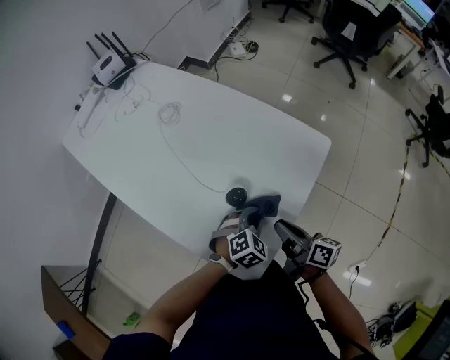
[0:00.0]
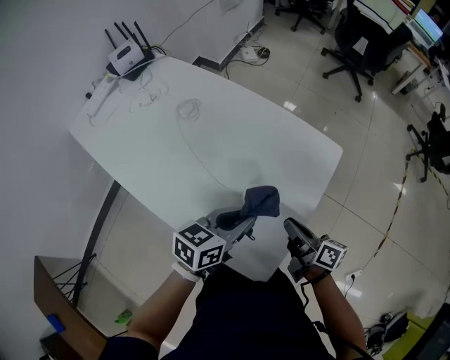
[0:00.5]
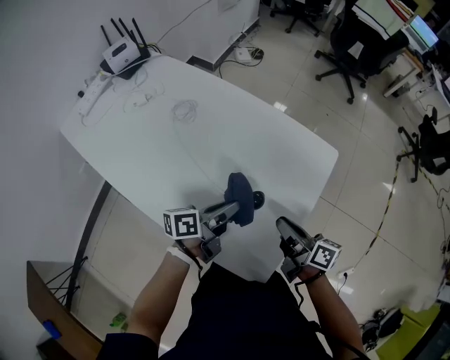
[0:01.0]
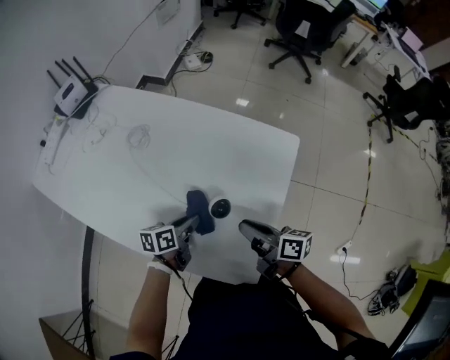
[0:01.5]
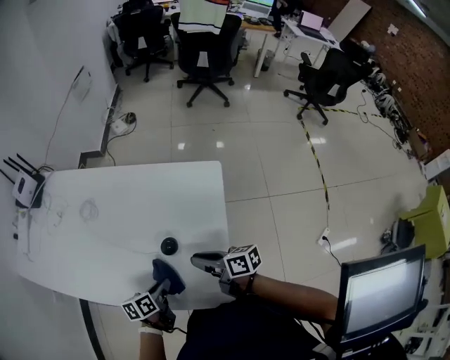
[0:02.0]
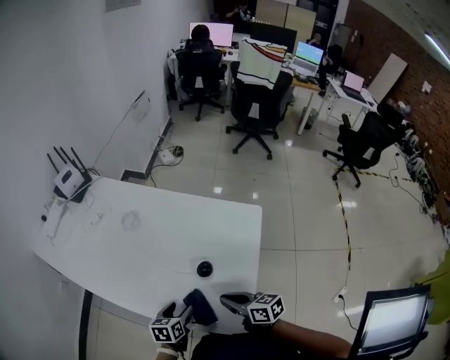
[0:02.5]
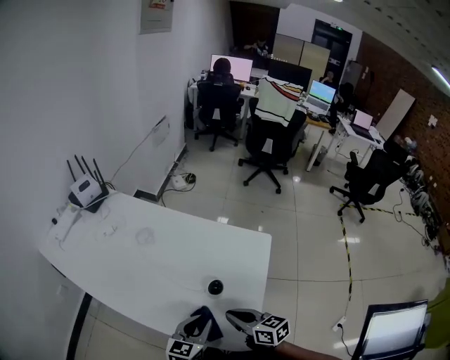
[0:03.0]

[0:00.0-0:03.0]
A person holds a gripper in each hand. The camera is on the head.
0:00.0 to 0:01.5: The right gripper shifts roughly 10 cm to the left. The left gripper is displaced to the left by some 20 cm, and twists roughly 70 degrees counterclockwise, seen from behind.
0:01.5 to 0:03.0: The left gripper heads upward and backward, covering about 20 cm, swivels approximately 40 degrees, and opens and closes again. Meanwhile the right gripper goes approximately 10 cm backward and upward, and rotates some 30 degrees.

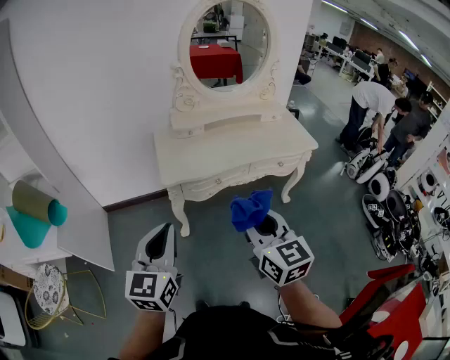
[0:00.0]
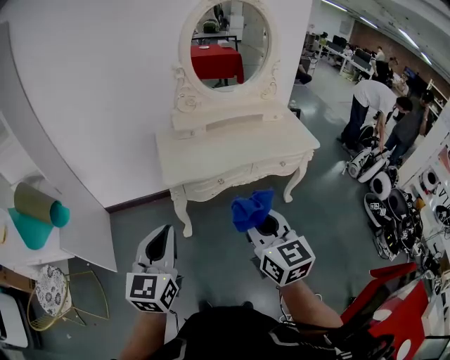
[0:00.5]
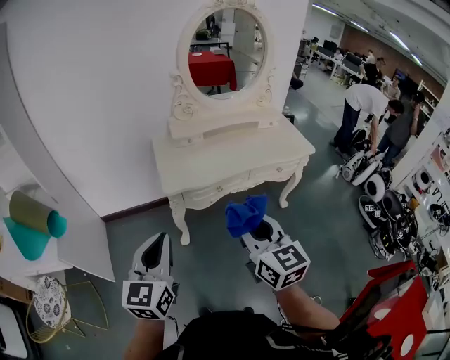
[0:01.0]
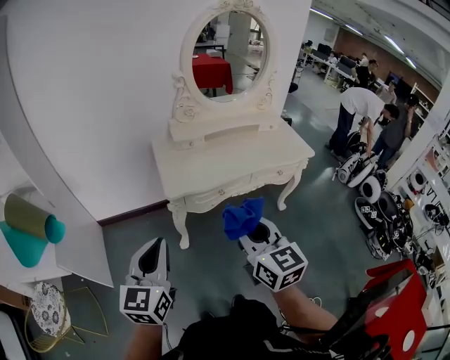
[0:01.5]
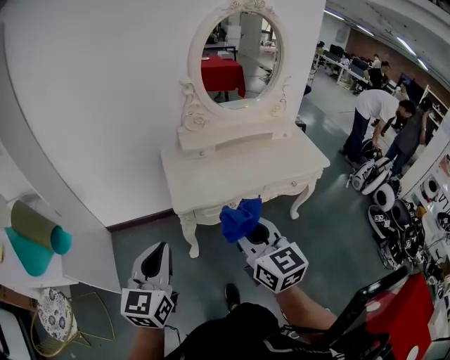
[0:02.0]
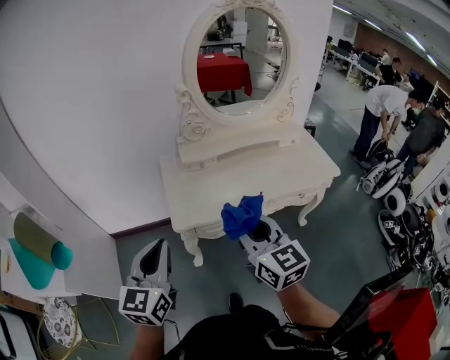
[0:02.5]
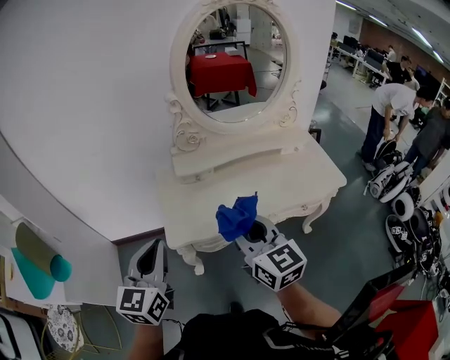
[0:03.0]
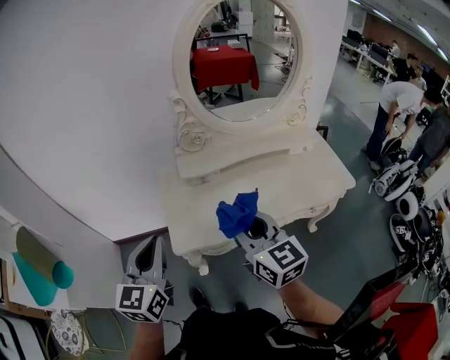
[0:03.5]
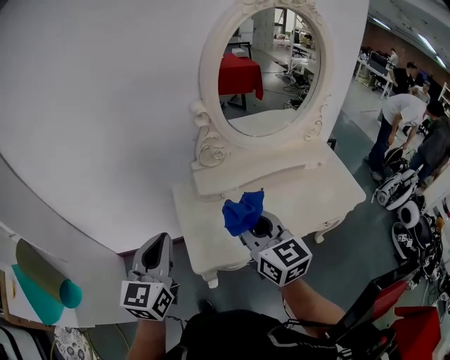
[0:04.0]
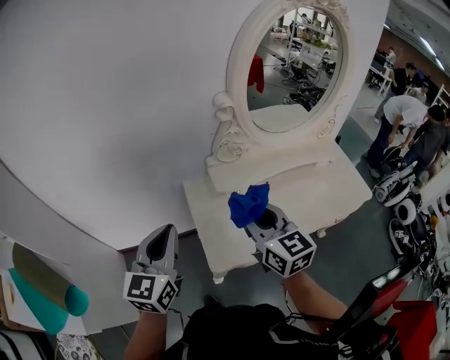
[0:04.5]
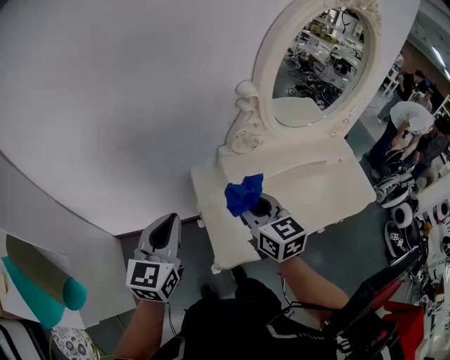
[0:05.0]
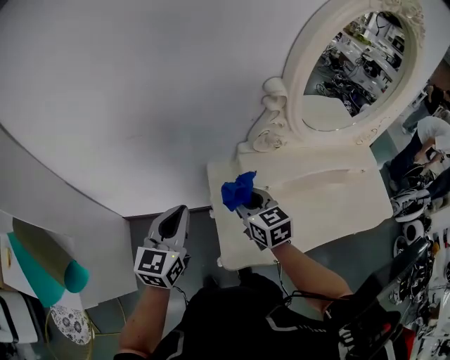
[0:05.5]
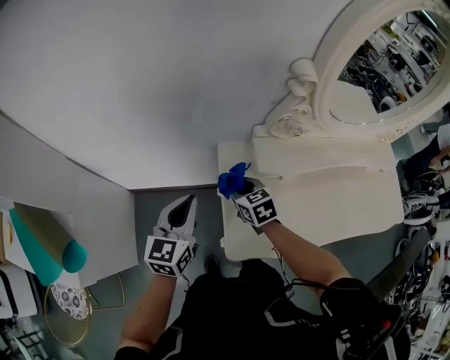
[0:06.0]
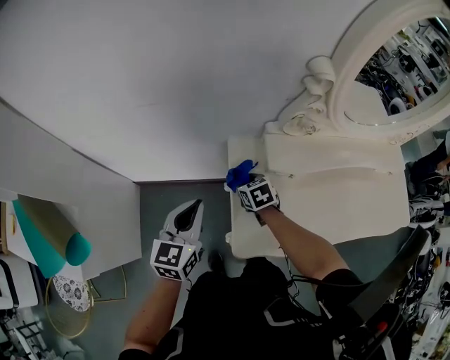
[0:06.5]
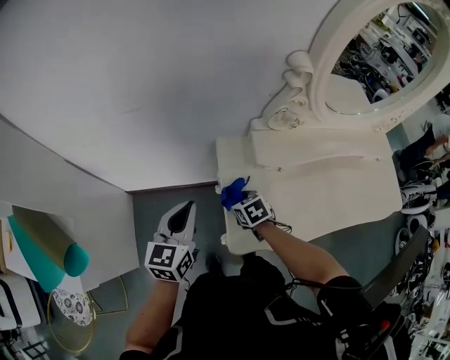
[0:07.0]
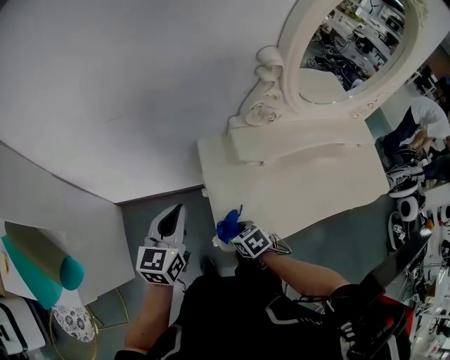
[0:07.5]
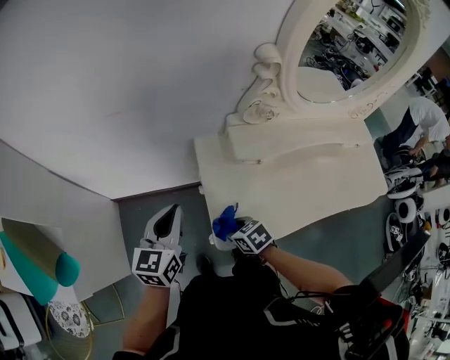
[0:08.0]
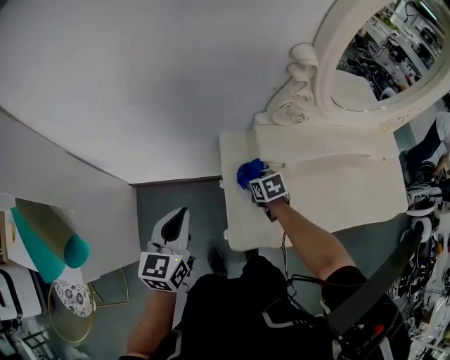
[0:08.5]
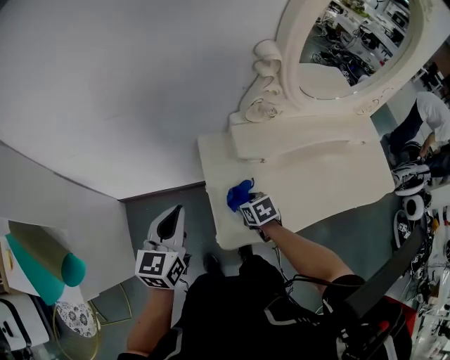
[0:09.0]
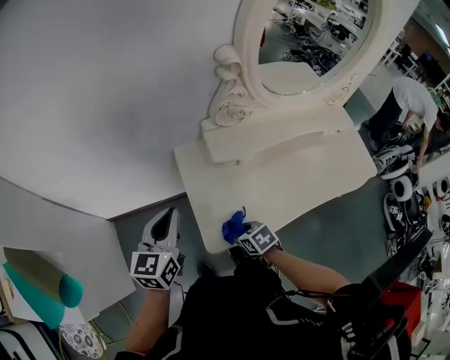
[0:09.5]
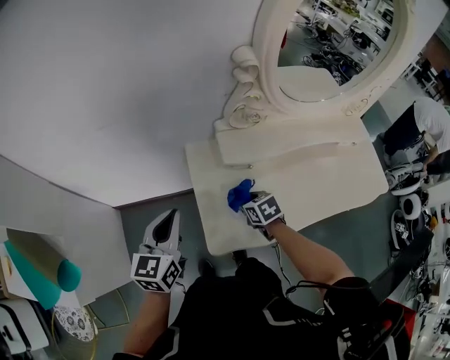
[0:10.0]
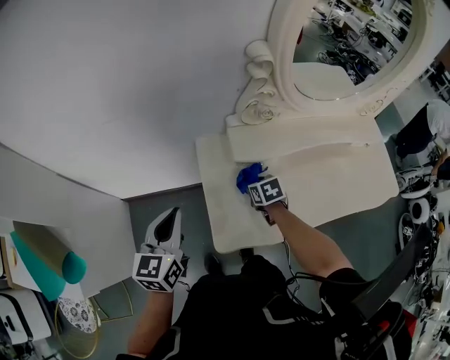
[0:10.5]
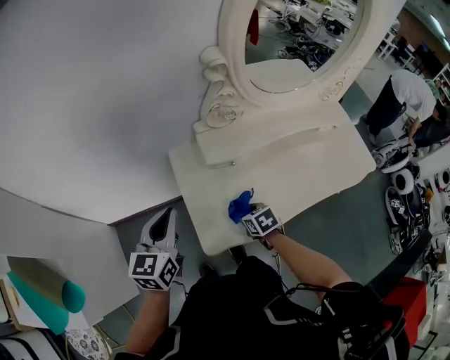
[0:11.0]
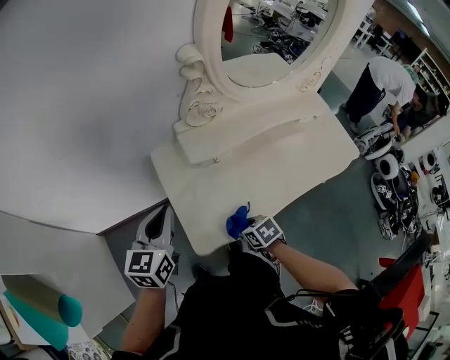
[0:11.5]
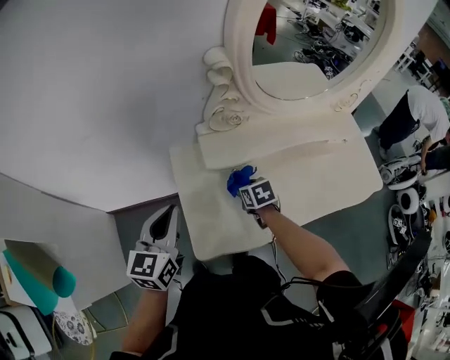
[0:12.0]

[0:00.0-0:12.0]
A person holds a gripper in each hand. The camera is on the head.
0:00.0 to 0:02.0: Both grippers move forward and to the left, roughly 10 cm.
0:02.0 to 0:04.0: Both grippers travel together forward, some 30 cm.
0:04.0 to 0:06.0: The left gripper shifts about 25 cm downward, forward and to the left, while the right gripper goes some 40 cm downward, forward and to the left, and points its fingers about 30 degrees further downward.
0:06.0 to 0:08.0: The right gripper goes some 20 cm backward, and rotates some 20 degrees. Meanwhile the left gripper shifts by some 5 cm.
0:08.0 to 0:10.0: The right gripper moves forward and backward over roughly 20 cm, changing direction 2 times.
0:10.0 to 0:12.0: The left gripper moves to the right, approximately 5 cm. Meanwhile the right gripper goes forward and backward, roughly 20 cm each way, reversing 2 times.

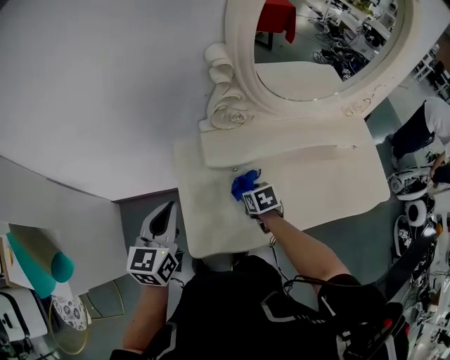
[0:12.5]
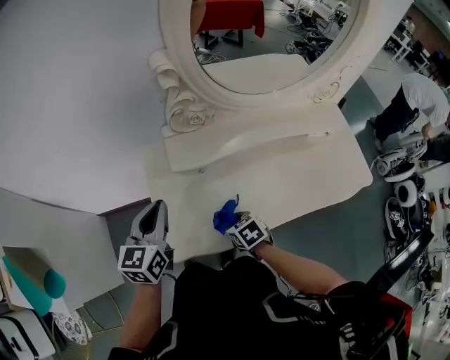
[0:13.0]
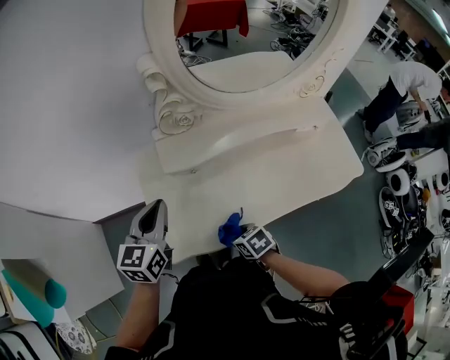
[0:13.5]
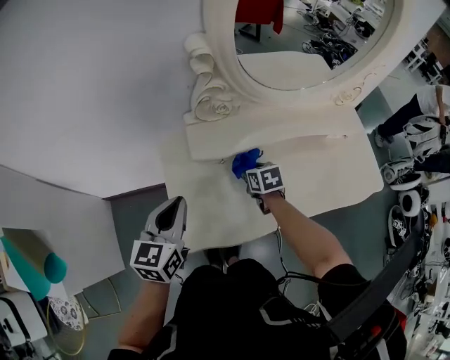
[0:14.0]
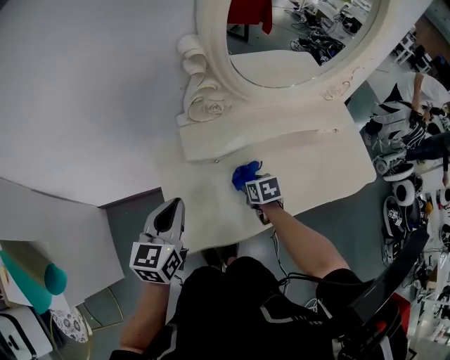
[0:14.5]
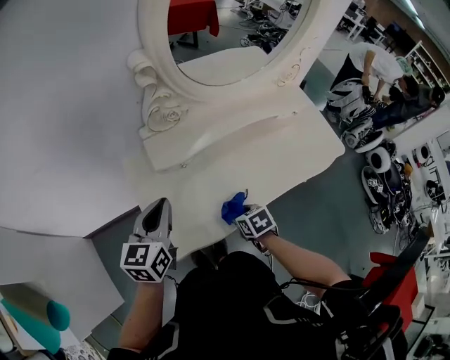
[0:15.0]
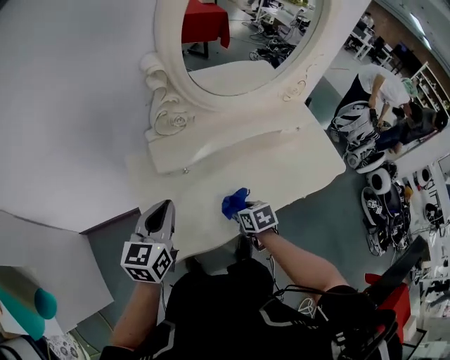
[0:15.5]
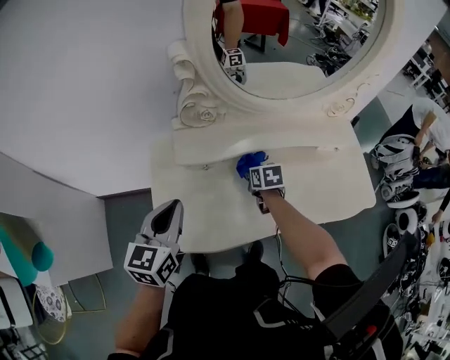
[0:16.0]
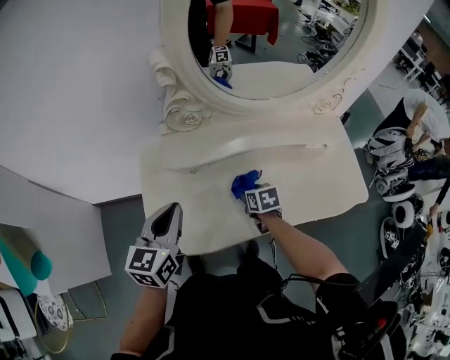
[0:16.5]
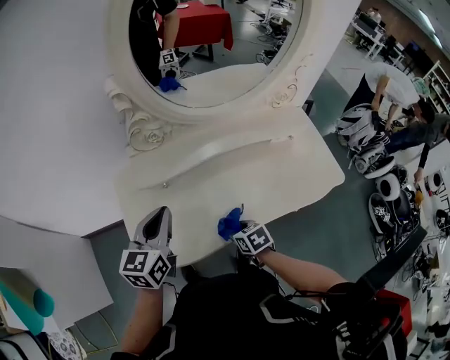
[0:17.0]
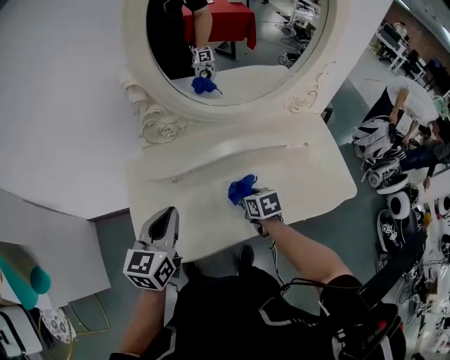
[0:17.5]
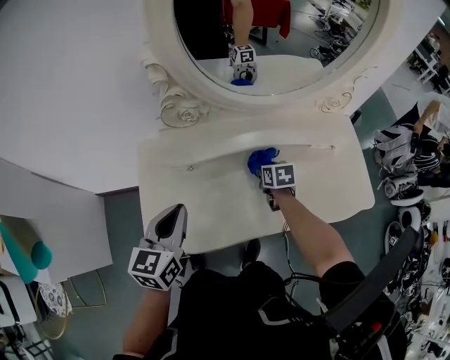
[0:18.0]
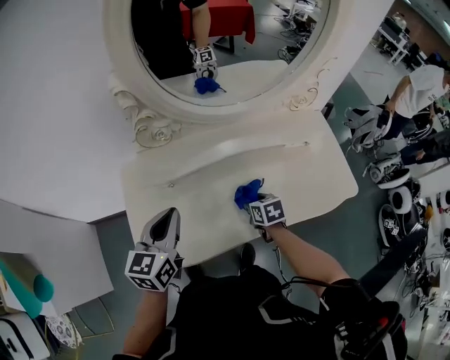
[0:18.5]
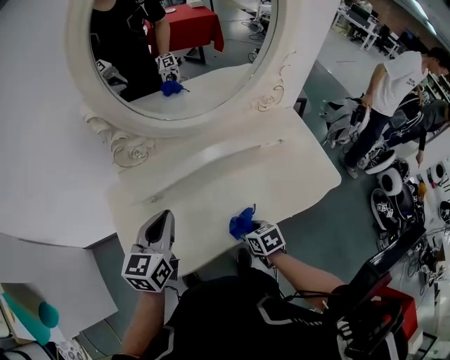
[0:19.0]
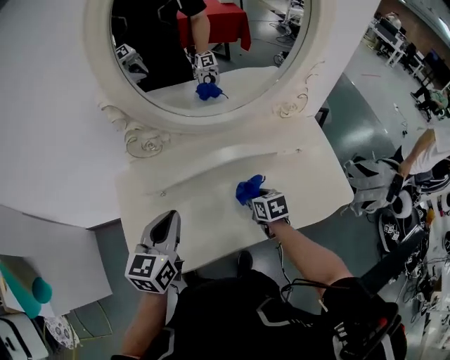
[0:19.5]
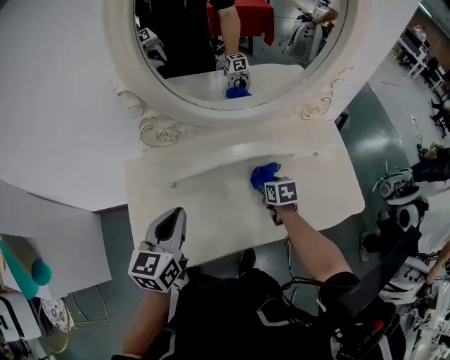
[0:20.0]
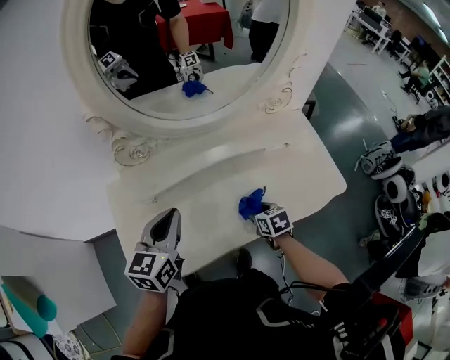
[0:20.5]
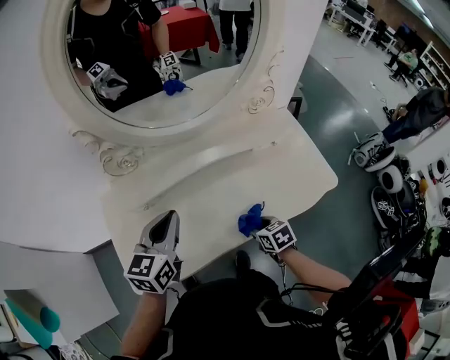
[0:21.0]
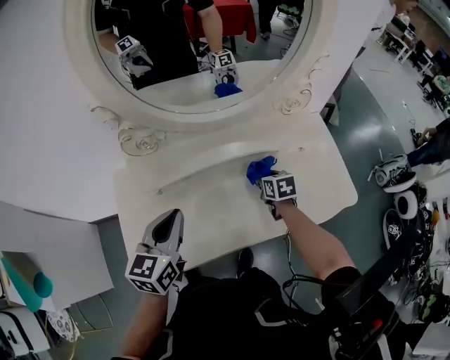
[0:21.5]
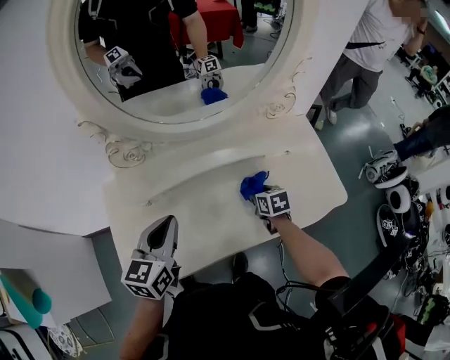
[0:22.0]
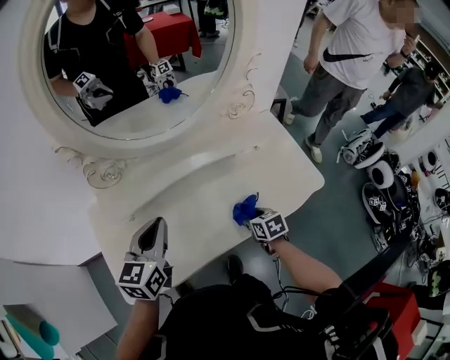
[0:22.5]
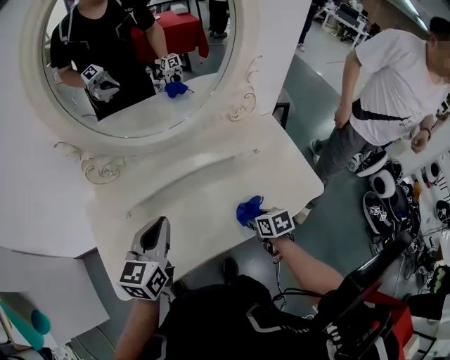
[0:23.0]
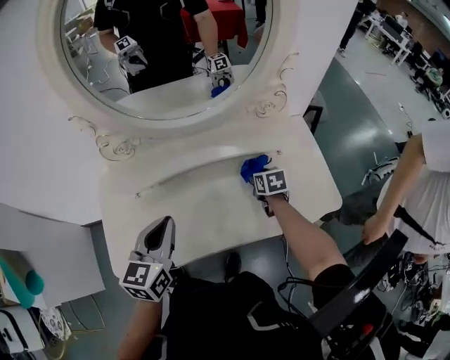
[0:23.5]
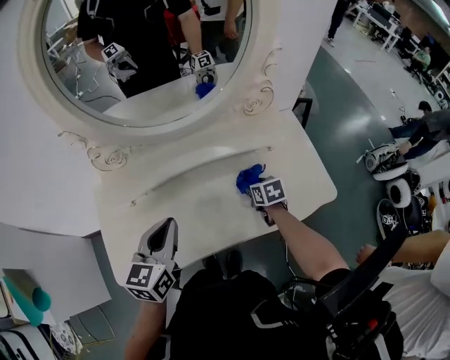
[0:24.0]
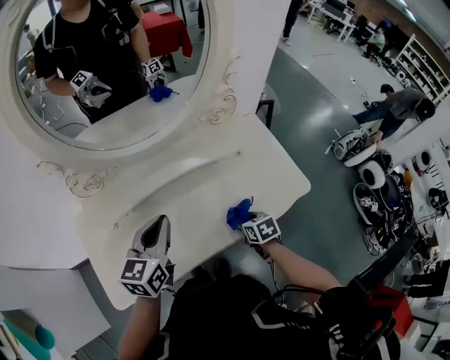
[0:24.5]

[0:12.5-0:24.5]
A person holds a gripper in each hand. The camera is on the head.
0:12.5 to 0:14.5: The left gripper goes about 5 cm to the right. The right gripper moves forward and backward over approximately 20 cm, changing direction 2 times.
0:14.5 to 0:16.5: The right gripper swings forward and backward, roughly 20 cm each way, with 2 reversals, while the left gripper moves to the right, approximately 10 cm.
0:16.5 to 0:18.5: The right gripper goes forward and backward, roughly 20 cm each way, reversing 2 times, while the left gripper moves to the right, roughly 5 cm.
0:18.5 to 0:20.5: The right gripper moves forward and backward over roughly 20 cm, changing direction 2 times, while the left gripper shifts some 5 cm to the right.
0:20.5 to 0:22.5: The right gripper swings forward and backward, roughly 20 cm each way, with 2 reversals.
0:22.5 to 0:24.5: The left gripper travels to the right by approximately 5 cm. The right gripper travels forward and back again, some 15 cm each way.
